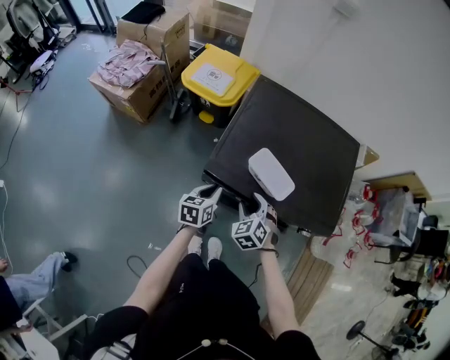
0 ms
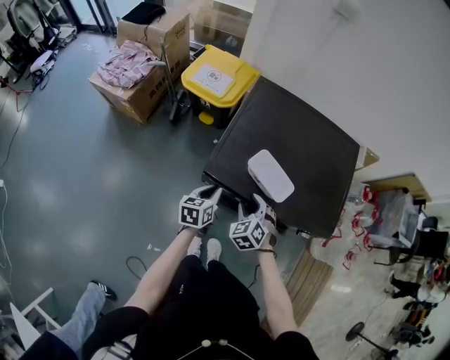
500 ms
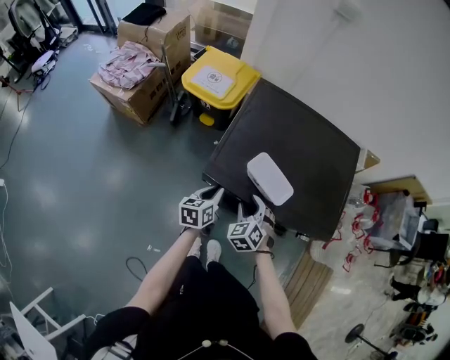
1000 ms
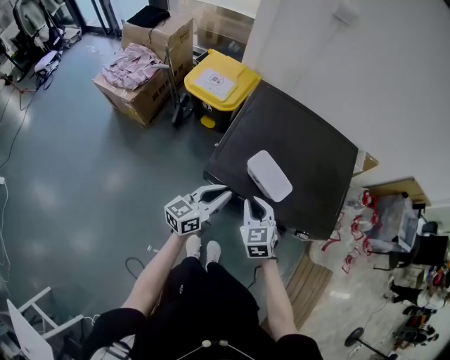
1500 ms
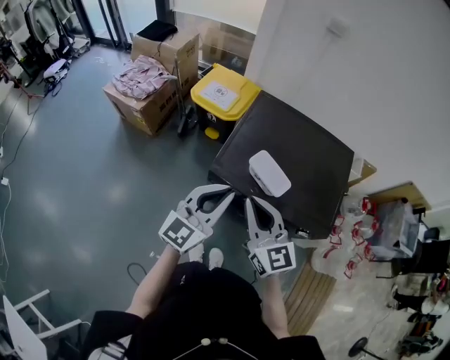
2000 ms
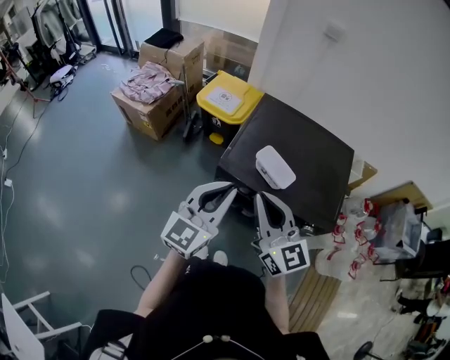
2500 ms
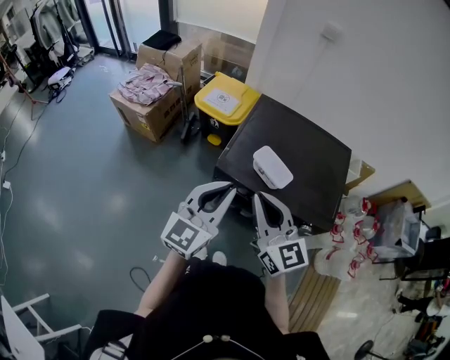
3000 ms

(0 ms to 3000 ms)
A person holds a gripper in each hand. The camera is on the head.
0 ms - 1500 ms: The right gripper goes some 5 cm upward, swivels about 20 degrees, and closes. Meanwhile the left gripper shifts approximately 10 cm upward, and tilts its fingers some 30 degrees upward.
1500 ms - 3000 ms: The right gripper heads upward, covering approximately 25 cm, and tilts its fingers roughly 40 degrees upward. The left gripper shifts some 20 cm upward and backward, and turns by roughly 30 degrees.

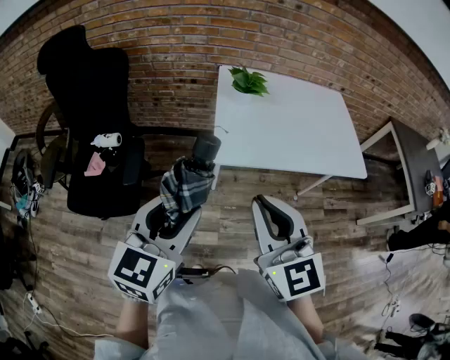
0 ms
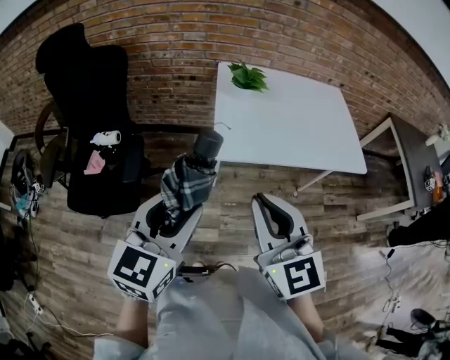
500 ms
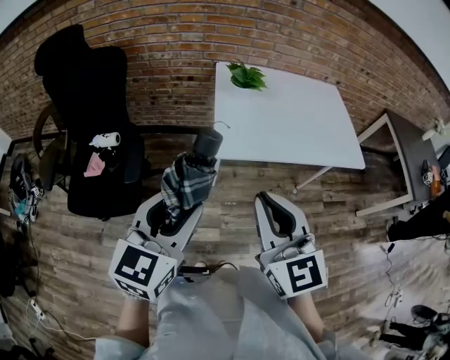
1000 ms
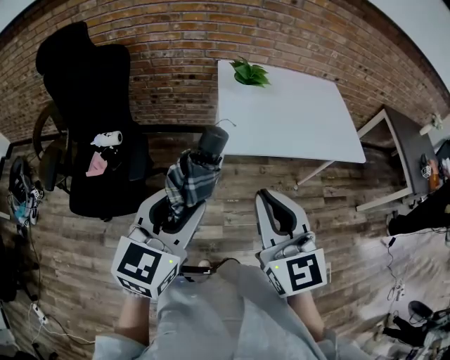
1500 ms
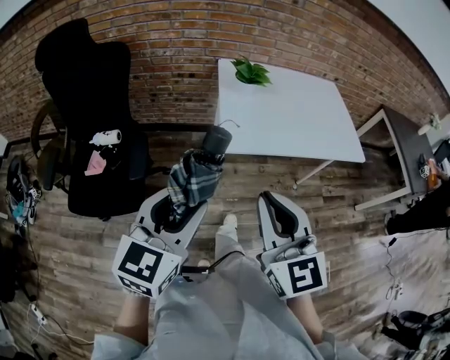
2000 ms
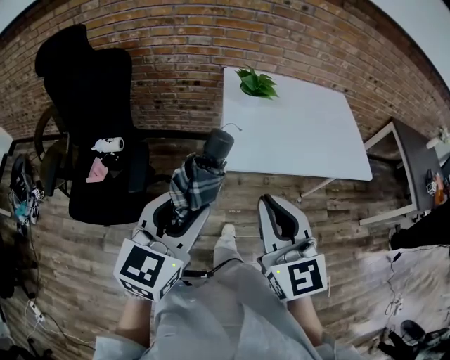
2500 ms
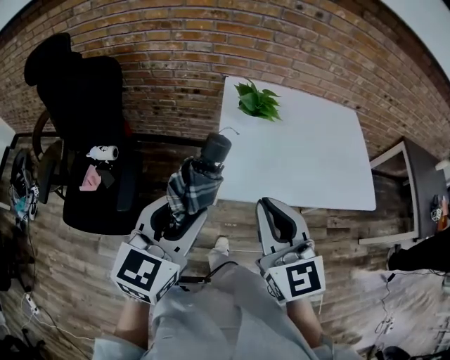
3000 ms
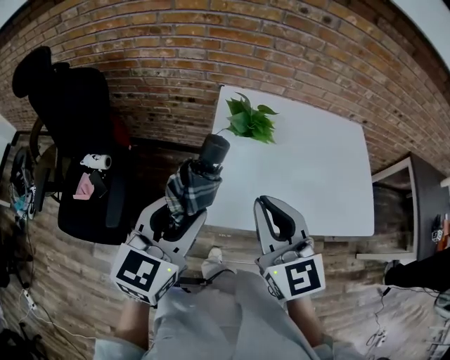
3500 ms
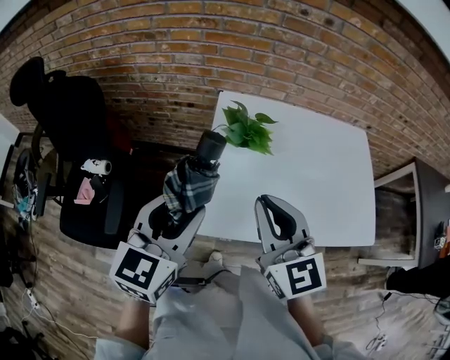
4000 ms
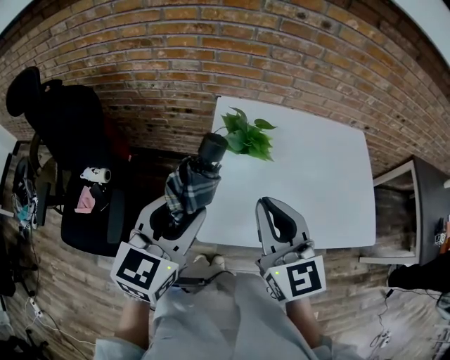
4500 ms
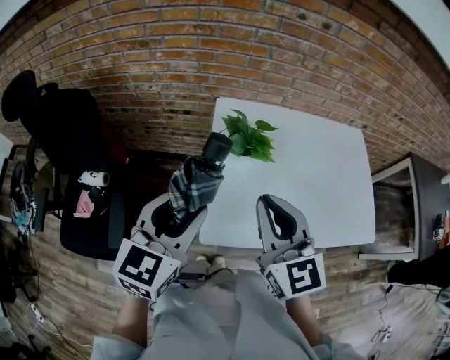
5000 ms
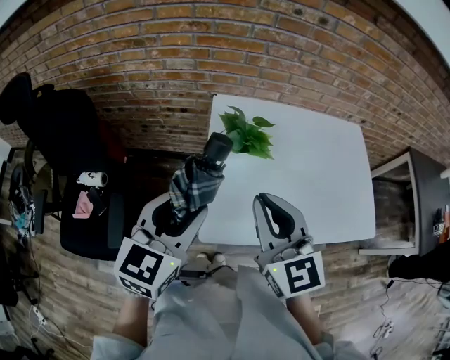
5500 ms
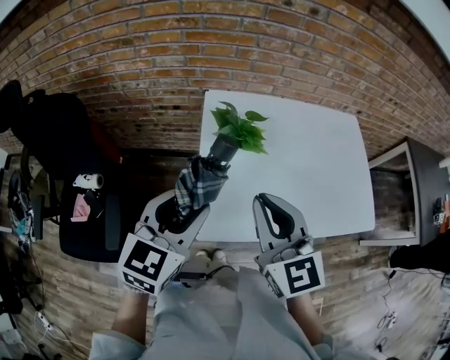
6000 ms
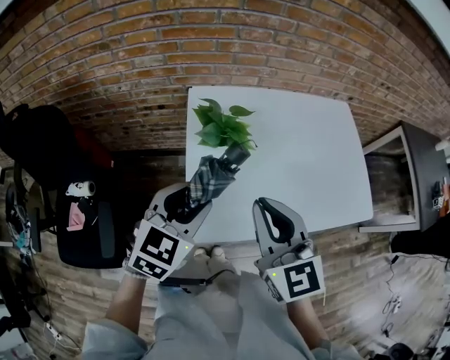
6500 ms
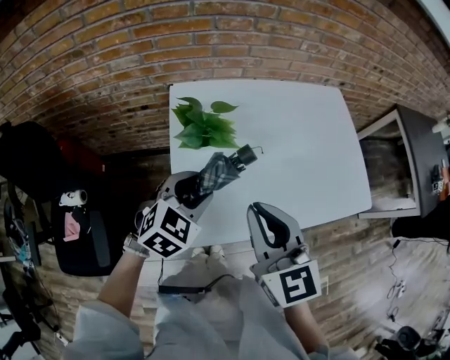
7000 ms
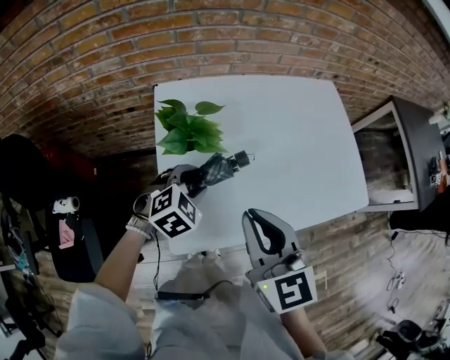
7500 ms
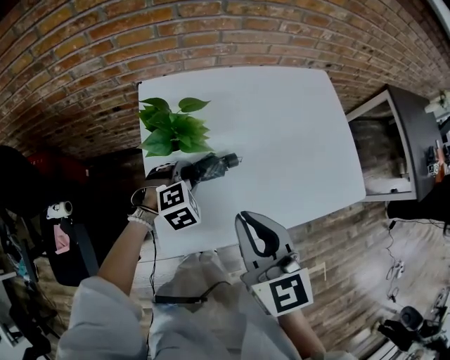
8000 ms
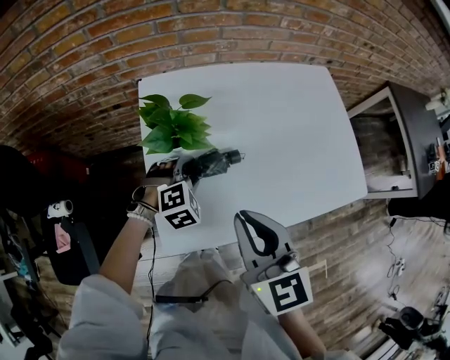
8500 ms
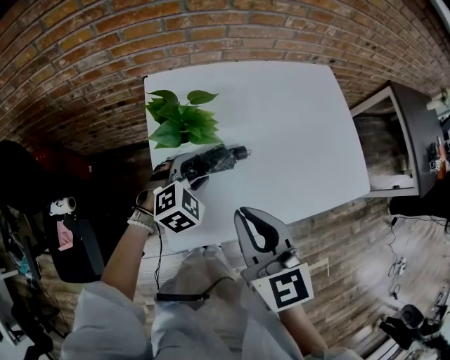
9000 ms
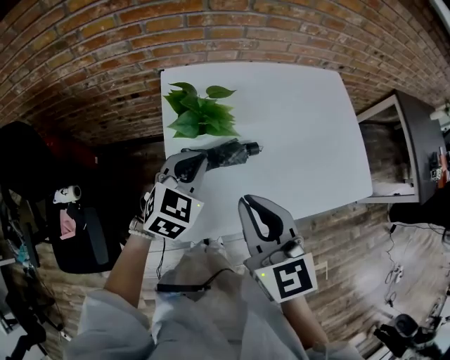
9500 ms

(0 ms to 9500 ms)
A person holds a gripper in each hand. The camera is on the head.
0 ms - 2000 ms: Both grippers travel together to the left, approximately 5 cm.
2000 ms - 4000 ms: The grippers both shift forward by approximately 35 cm.
4000 ms - 5500 ms: The grippers stay close to where they were, moving slightly.
5500 ms - 7500 ms: The right gripper moves to the right and downward, some 10 cm, while the left gripper heads downward, forward and to the right, covering roughly 30 cm, and points its fingers about 40 degrees further downward.
7500 ms - 9500 ms: The left gripper travels upward by approximately 5 cm, rotates about 30 degrees, and closes up.

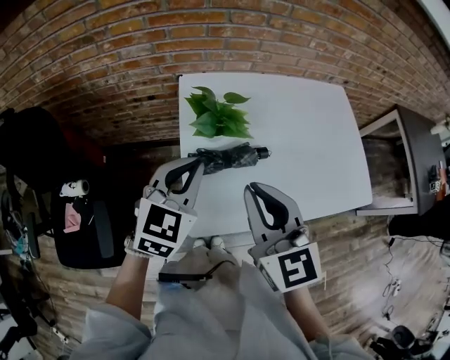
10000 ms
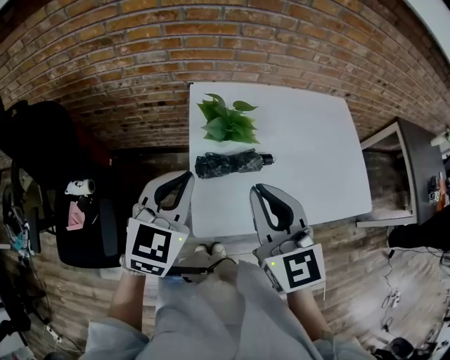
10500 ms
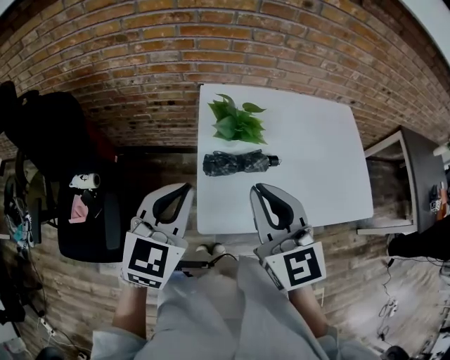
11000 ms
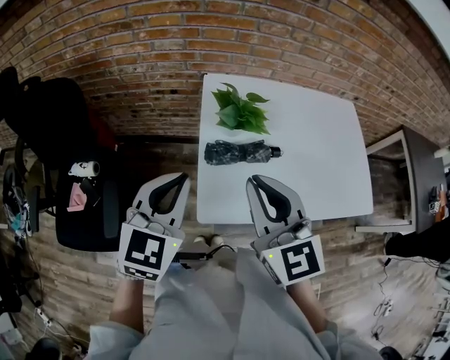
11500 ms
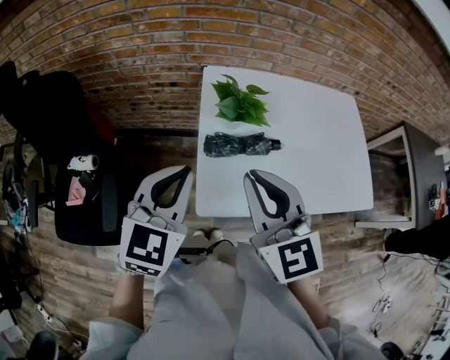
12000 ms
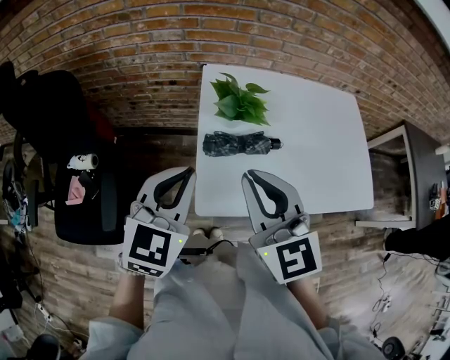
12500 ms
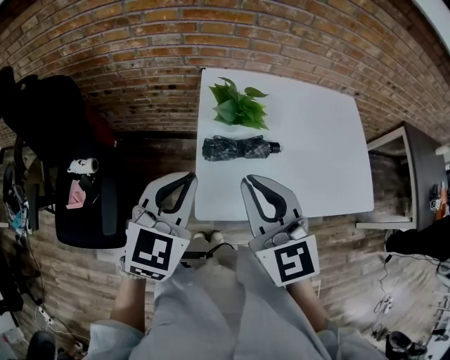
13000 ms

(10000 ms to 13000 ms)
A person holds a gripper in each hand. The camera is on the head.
10000 ms - 11500 ms: The left gripper moves backward and to the left, some 10 cm. The right gripper ends up some 5 cm from where it was.
11500 ms - 13000 ms: There are only small adjustments of the grippers.

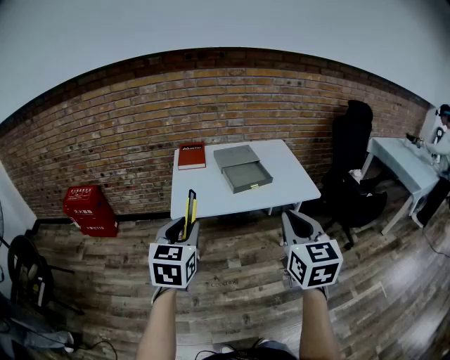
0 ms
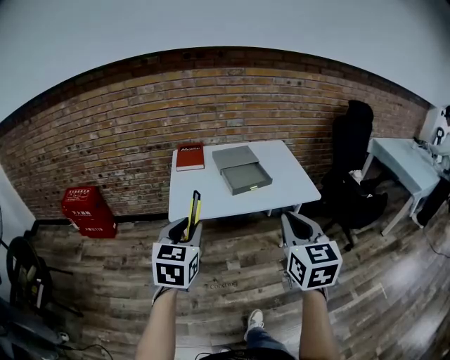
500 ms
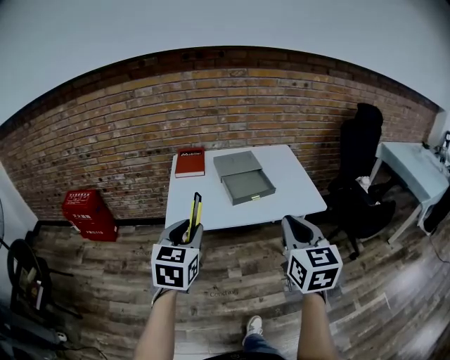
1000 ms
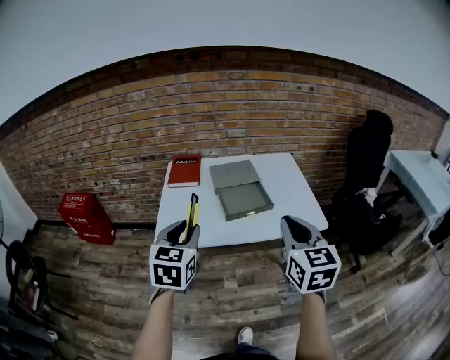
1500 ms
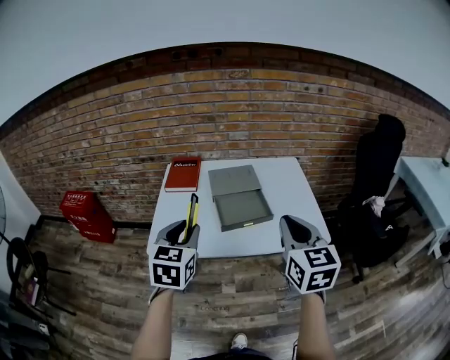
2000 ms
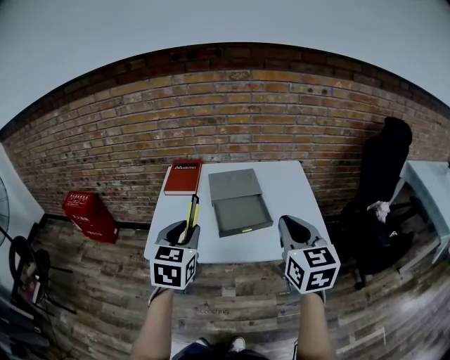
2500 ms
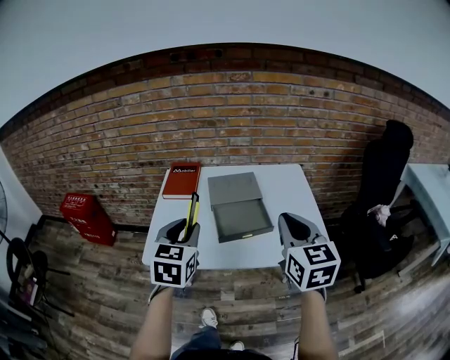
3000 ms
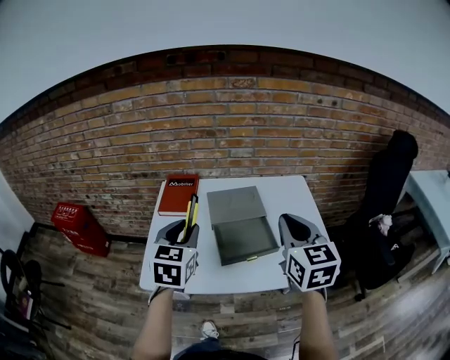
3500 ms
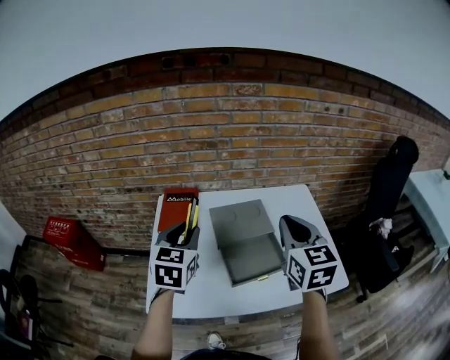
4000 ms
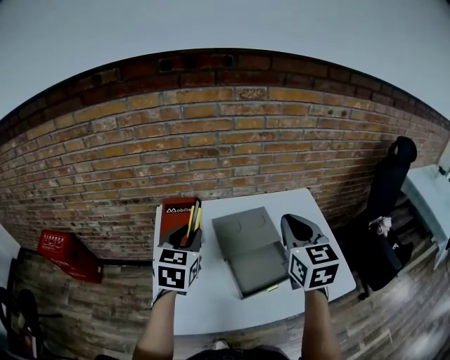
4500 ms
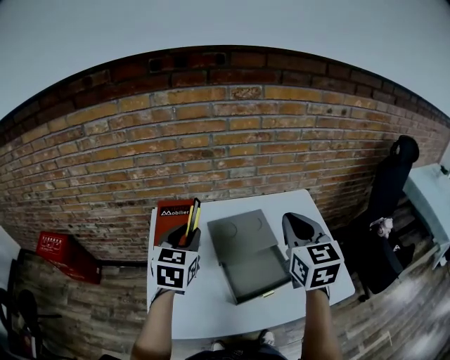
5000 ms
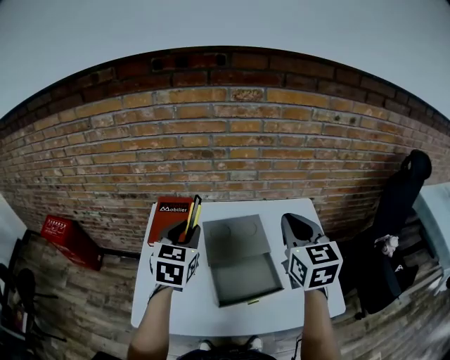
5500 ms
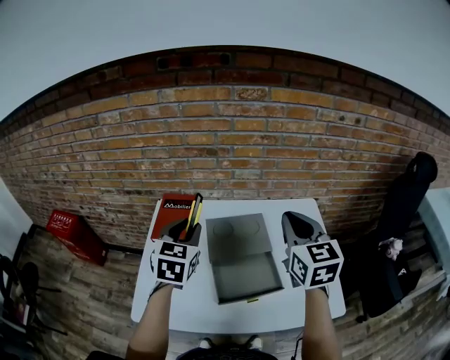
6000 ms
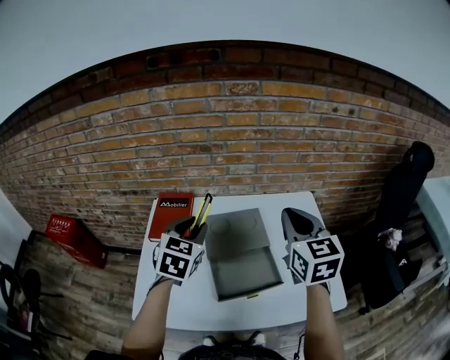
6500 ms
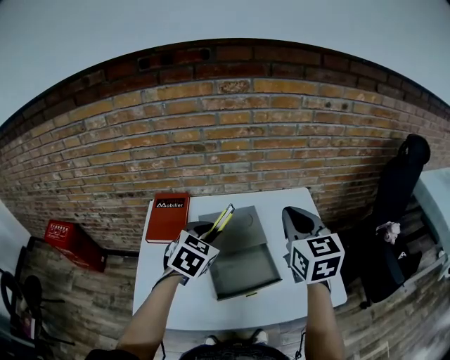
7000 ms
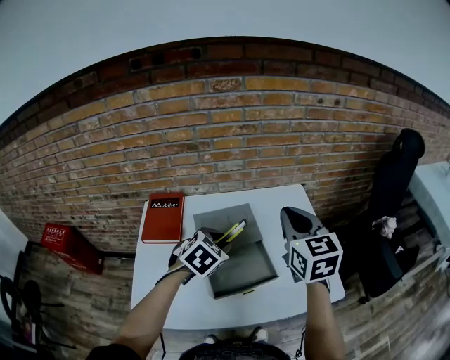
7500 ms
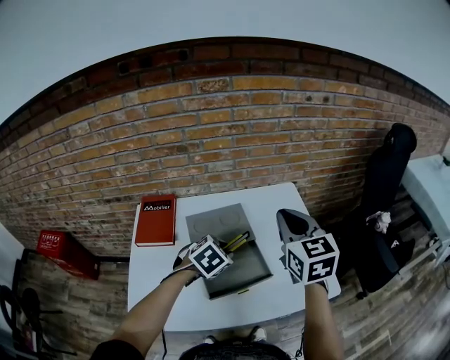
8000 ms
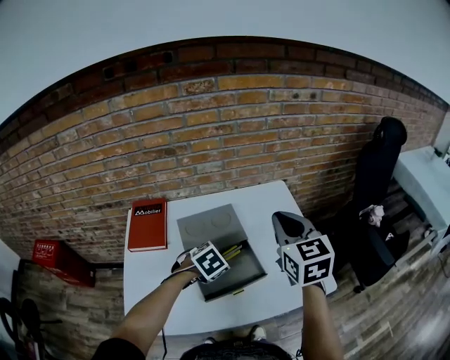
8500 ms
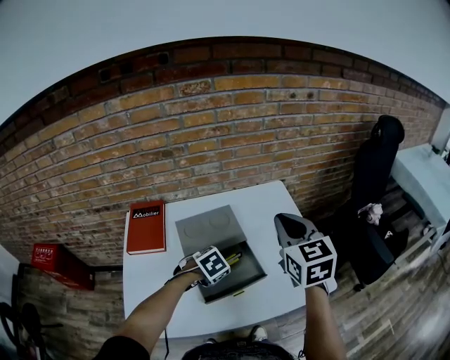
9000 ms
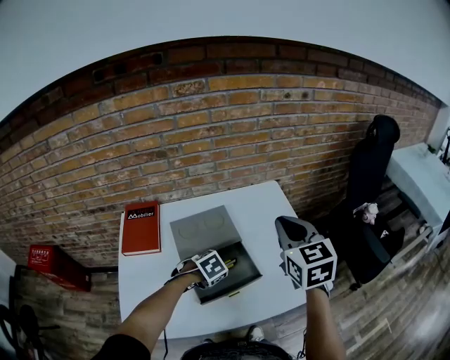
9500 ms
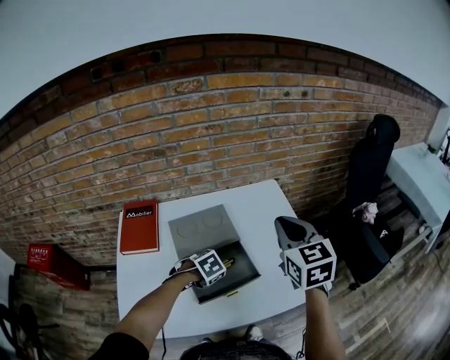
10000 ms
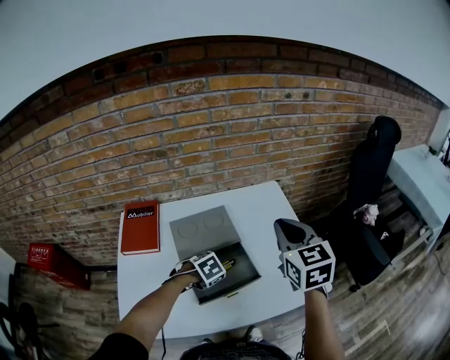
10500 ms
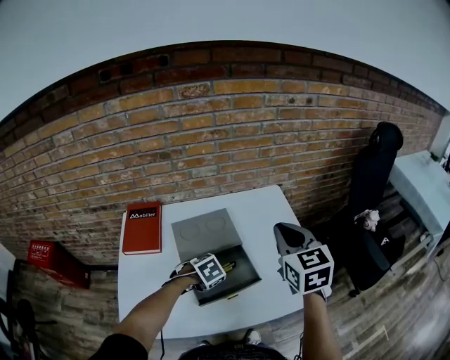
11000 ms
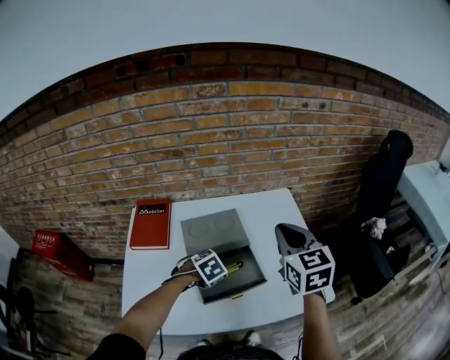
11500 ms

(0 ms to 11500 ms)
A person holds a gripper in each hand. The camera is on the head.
0 ms - 2000 ms: Both grippers move forward, roughly 25 cm.
2000 ms - 4000 ms: Both grippers move forward, approximately 25 cm.
4000 ms - 6000 ms: Both grippers move forward, some 10 cm.
6000 ms - 7500 ms: The left gripper is displaced to the right and downward by approximately 15 cm, and changes its angle by roughly 40 degrees.
7500 ms - 9500 ms: The left gripper moves downward, approximately 15 cm, and changes its angle by approximately 30 degrees, while the right gripper ends up about 5 cm from where it was.
9500 ms - 11500 ms: The grippers move only a little.
